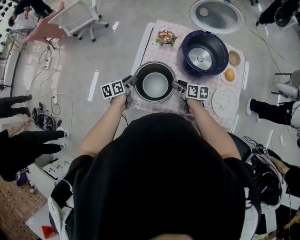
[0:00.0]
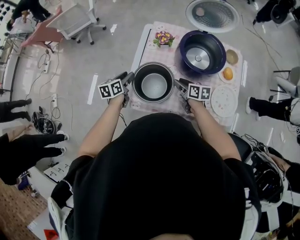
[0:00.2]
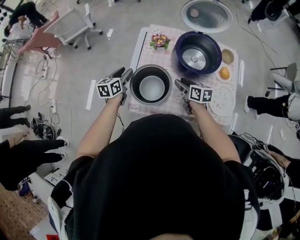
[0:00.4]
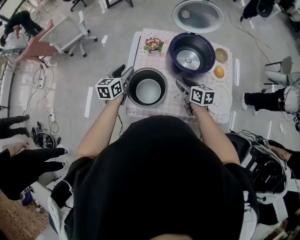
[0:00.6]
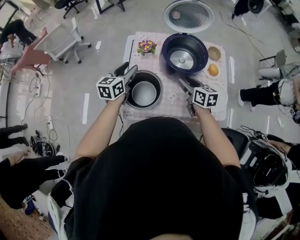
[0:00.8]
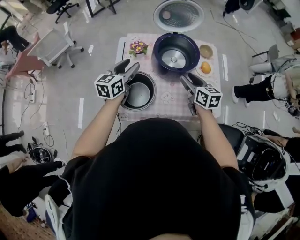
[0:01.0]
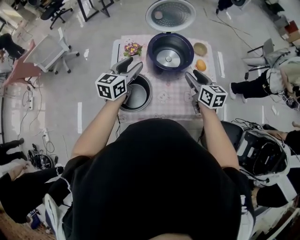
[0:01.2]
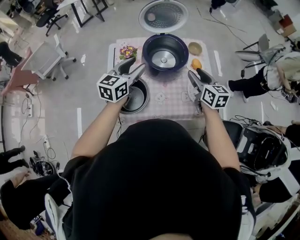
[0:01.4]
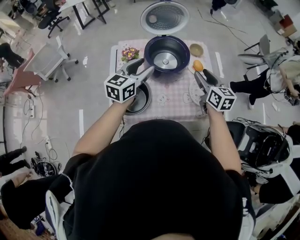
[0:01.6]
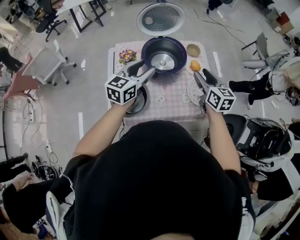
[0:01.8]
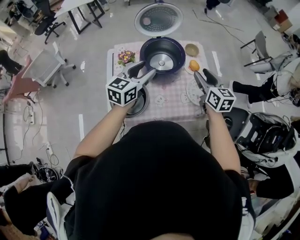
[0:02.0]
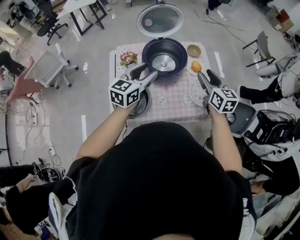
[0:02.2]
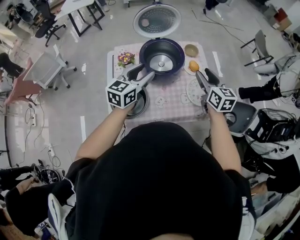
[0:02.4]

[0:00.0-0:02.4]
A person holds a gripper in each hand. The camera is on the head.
0:00.0 to 0:01.2: The grippers both shift upward by some 20 cm. The left gripper changes its angle by some 50 degrees, while the right gripper swivels some 40 degrees.
0:01.2 to 0:02.4: The right gripper heads to the right and upward, covering approximately 10 cm, while the left gripper shifts approximately 10 cm to the right.

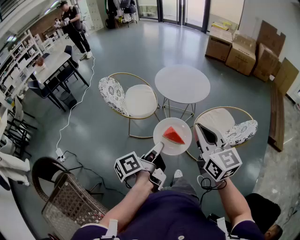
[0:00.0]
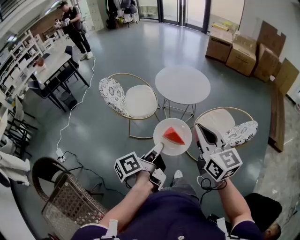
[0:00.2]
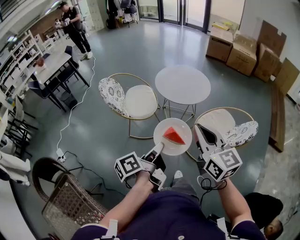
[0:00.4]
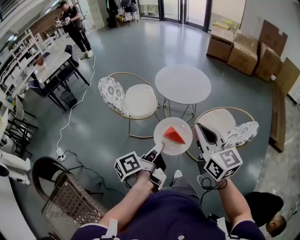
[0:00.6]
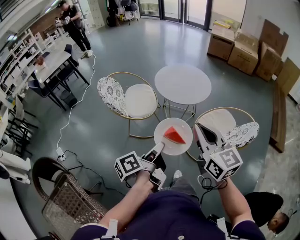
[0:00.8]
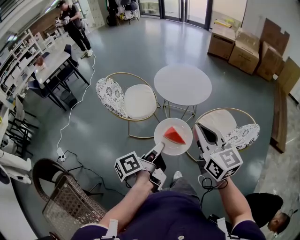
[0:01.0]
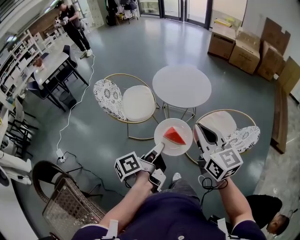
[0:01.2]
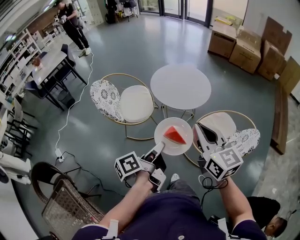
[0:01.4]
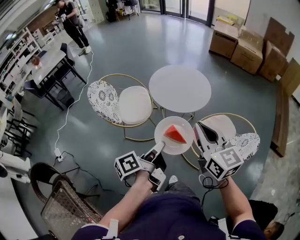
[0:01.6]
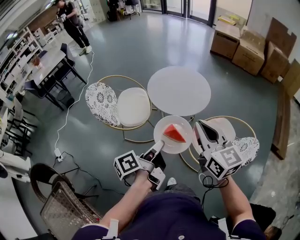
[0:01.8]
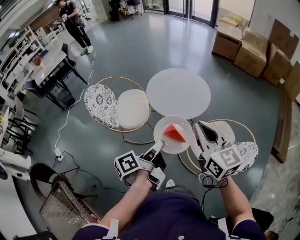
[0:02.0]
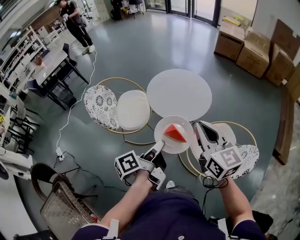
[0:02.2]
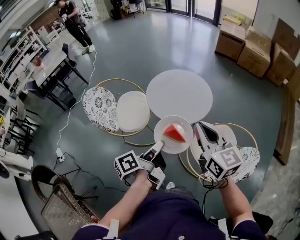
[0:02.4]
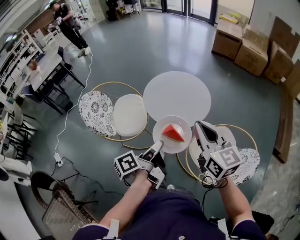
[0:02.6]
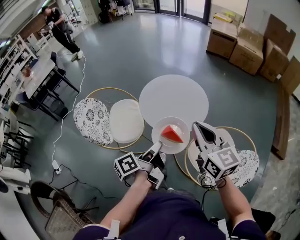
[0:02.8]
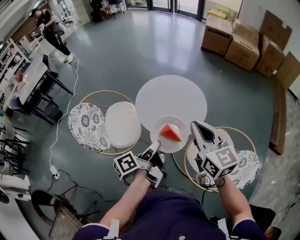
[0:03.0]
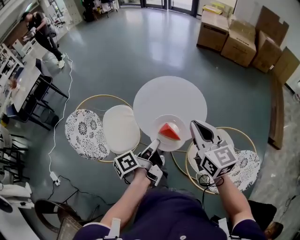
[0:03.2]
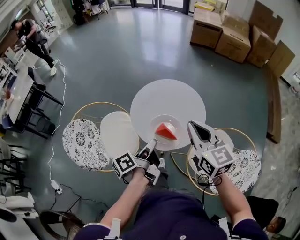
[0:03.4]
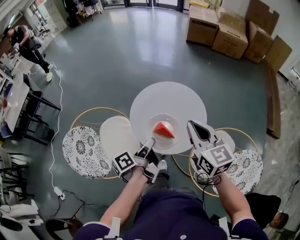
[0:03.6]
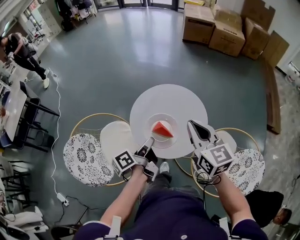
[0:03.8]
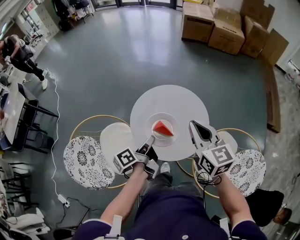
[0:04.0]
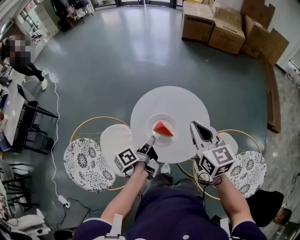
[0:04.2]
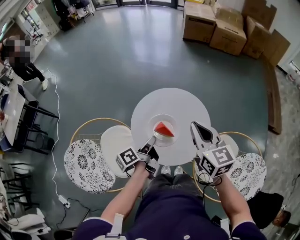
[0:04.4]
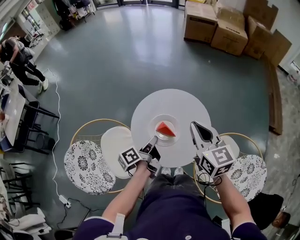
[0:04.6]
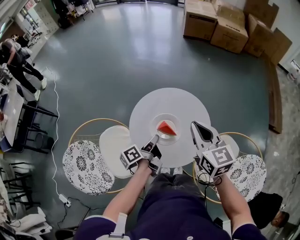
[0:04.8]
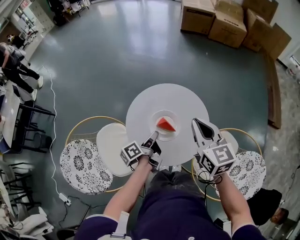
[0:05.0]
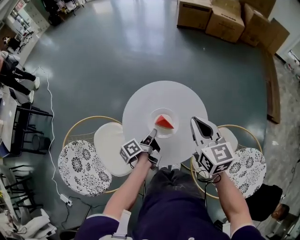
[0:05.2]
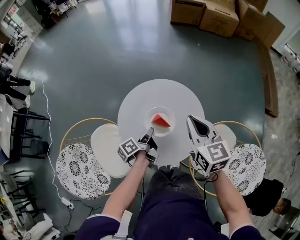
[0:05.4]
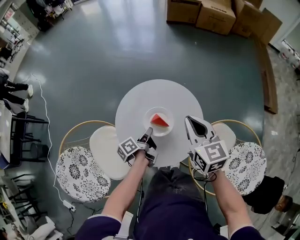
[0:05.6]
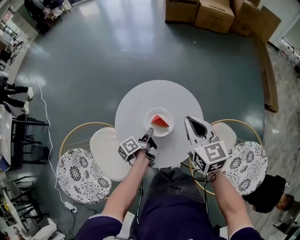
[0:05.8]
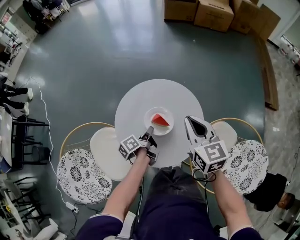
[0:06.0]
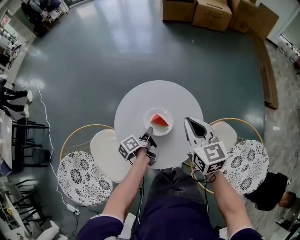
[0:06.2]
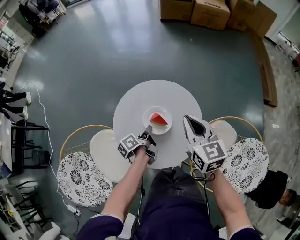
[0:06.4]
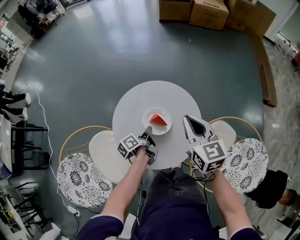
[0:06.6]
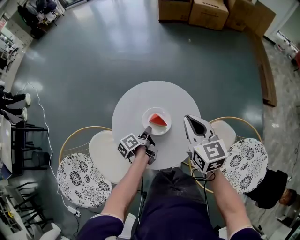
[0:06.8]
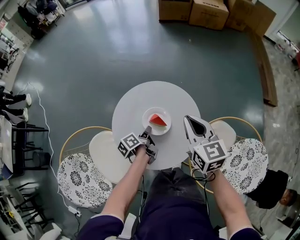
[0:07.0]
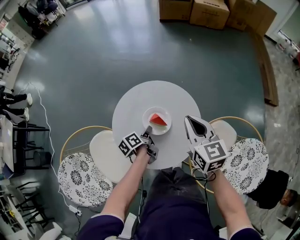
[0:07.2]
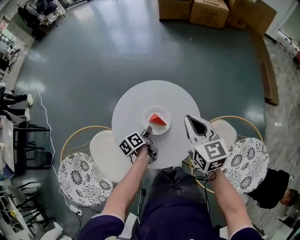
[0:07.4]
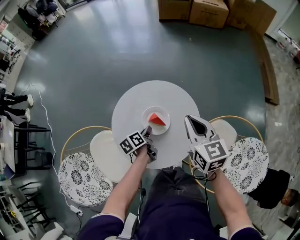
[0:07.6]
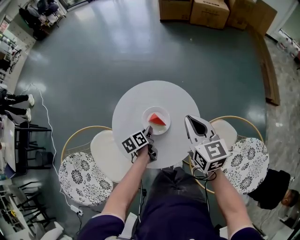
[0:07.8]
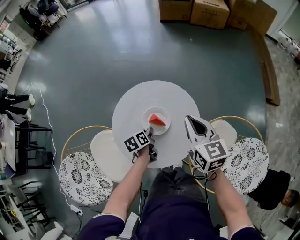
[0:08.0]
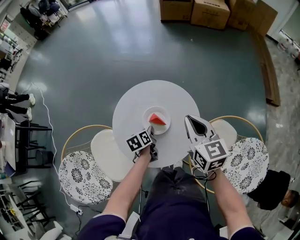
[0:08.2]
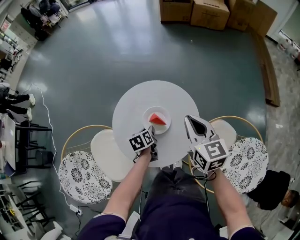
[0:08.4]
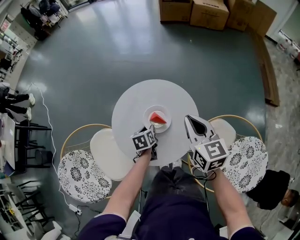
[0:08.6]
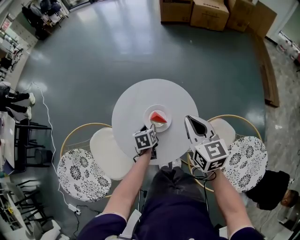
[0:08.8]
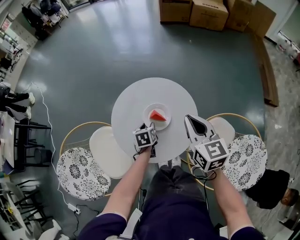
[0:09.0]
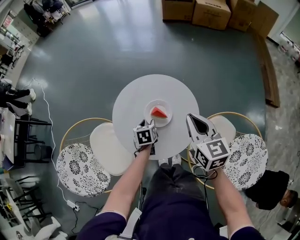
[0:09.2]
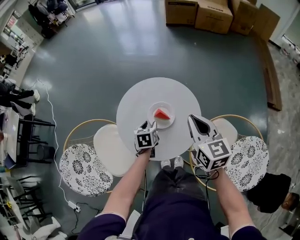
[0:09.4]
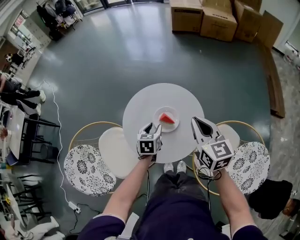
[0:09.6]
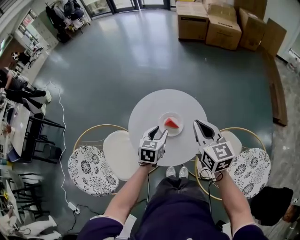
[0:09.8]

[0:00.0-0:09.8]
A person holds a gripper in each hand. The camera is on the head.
0:00.0 to 0:01.4: The left gripper heads forward and to the right, covering roughly 10 cm. The right gripper heads forward, covering about 10 cm.
0:01.4 to 0:02.8: The grippers both shift forward by approximately 20 cm.
0:02.8 to 0:04.2: Both grippers move forward, roughly 25 cm.
0:04.2 to 0:05.6: The left gripper heads downward and forward, covering about 15 cm. Meanwhile the right gripper goes roughly 10 cm downward and forward.
0:05.6 to 0:07.0: The grippers make only small movements.
0:07.0 to 0:08.4: The left gripper rotates roughly 40 degrees, and opens up.
0:08.4 to 0:09.8: The left gripper shifts roughly 15 cm upward, and changes its angle by some 40 degrees; the right gripper changes place by about 5 cm.

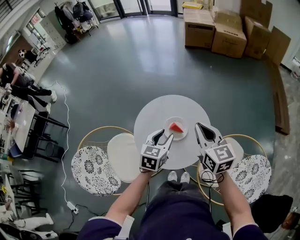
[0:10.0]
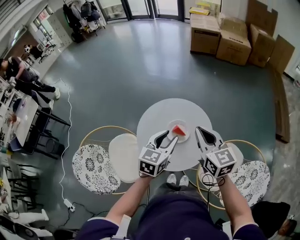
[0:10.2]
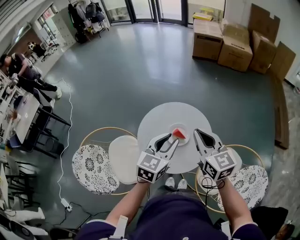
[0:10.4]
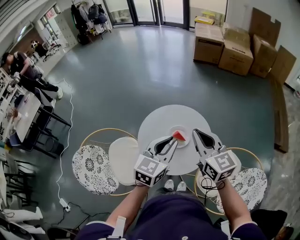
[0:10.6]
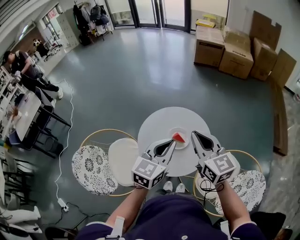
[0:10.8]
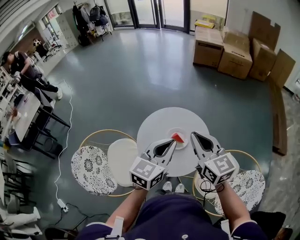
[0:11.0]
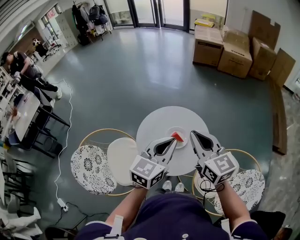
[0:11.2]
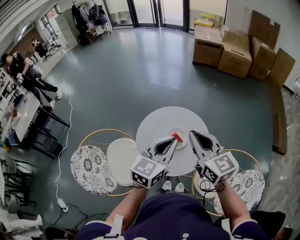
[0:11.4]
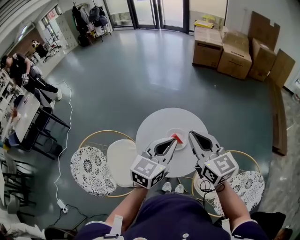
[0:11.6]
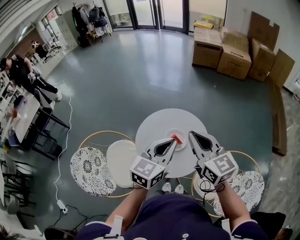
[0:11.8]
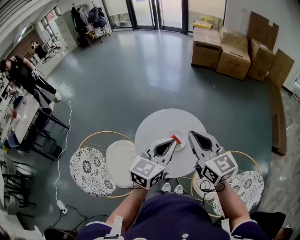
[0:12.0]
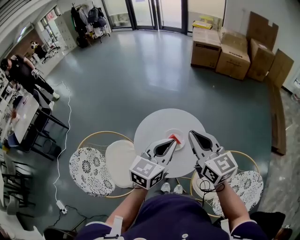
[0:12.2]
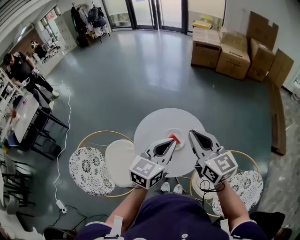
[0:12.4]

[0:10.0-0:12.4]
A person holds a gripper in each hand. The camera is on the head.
0:10.0 to 0:11.2: The left gripper heads upward, covering roughly 15 cm, and closes, while the right gripper shifts about 10 cm upward.
0:11.2 to 0:12.4: There are only small adjustments of the grippers.

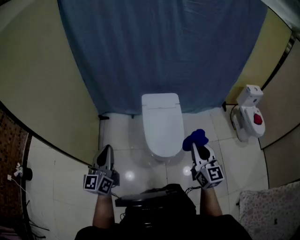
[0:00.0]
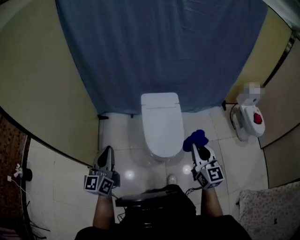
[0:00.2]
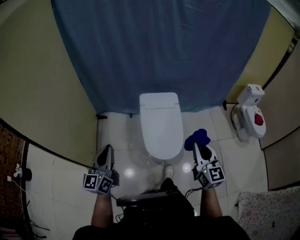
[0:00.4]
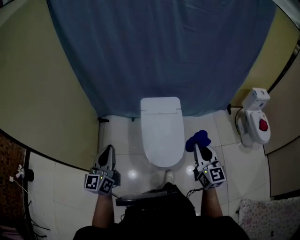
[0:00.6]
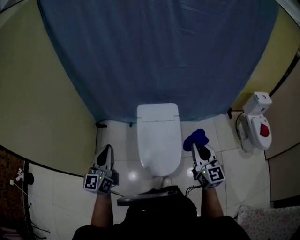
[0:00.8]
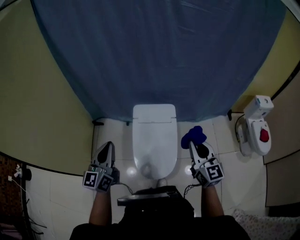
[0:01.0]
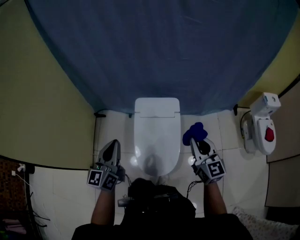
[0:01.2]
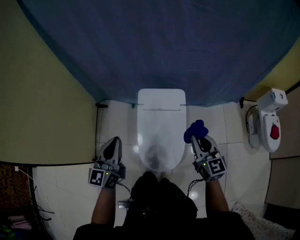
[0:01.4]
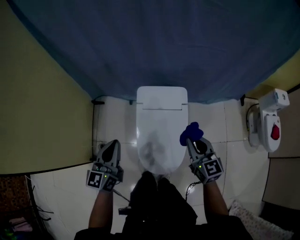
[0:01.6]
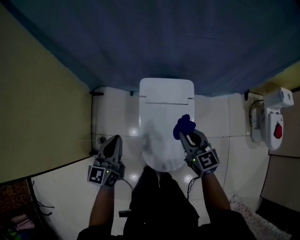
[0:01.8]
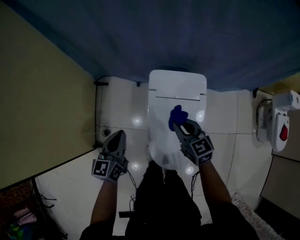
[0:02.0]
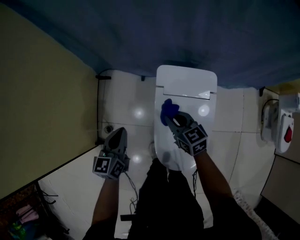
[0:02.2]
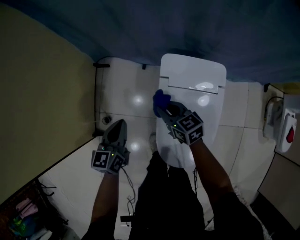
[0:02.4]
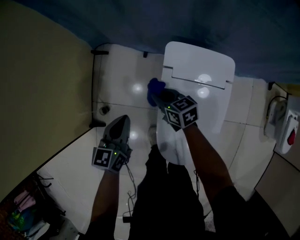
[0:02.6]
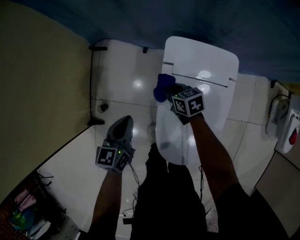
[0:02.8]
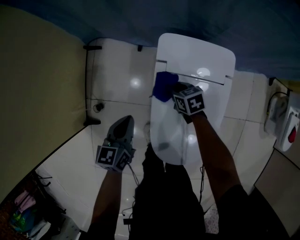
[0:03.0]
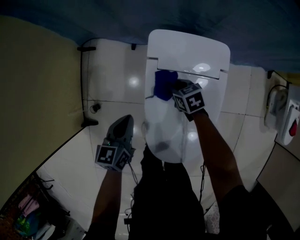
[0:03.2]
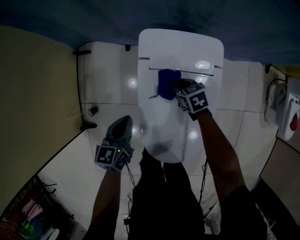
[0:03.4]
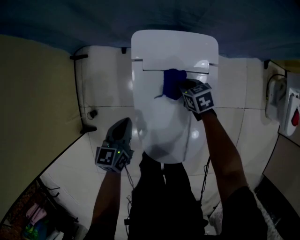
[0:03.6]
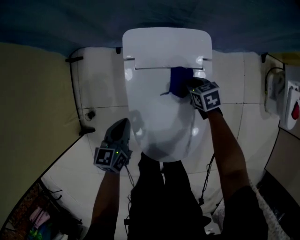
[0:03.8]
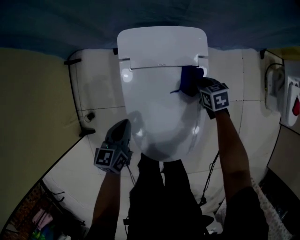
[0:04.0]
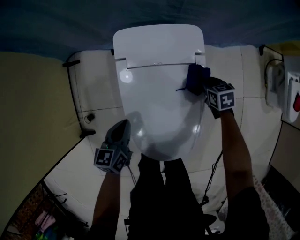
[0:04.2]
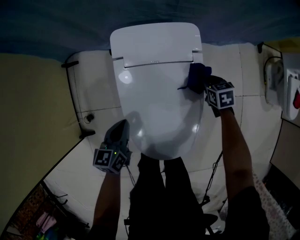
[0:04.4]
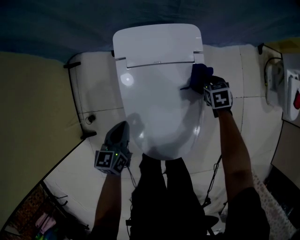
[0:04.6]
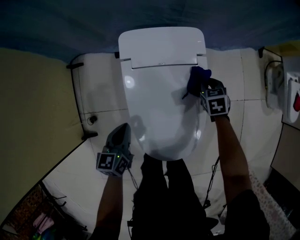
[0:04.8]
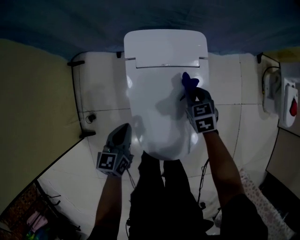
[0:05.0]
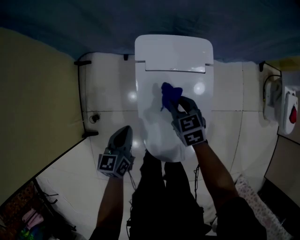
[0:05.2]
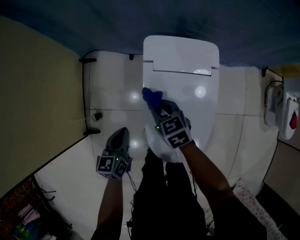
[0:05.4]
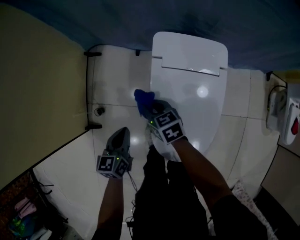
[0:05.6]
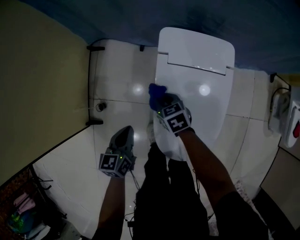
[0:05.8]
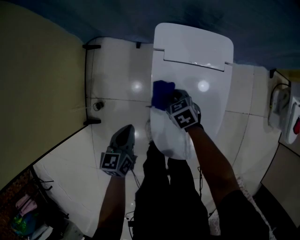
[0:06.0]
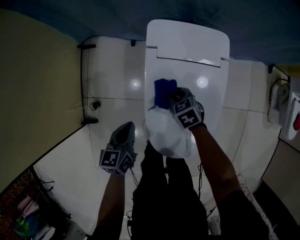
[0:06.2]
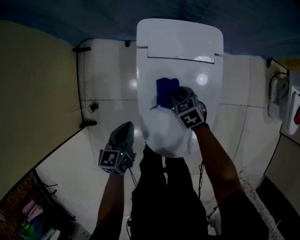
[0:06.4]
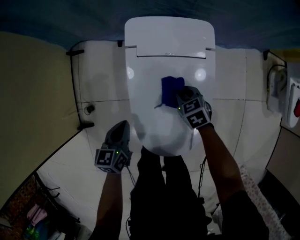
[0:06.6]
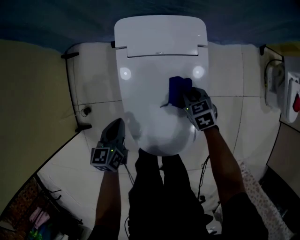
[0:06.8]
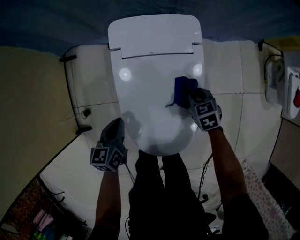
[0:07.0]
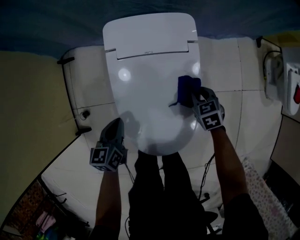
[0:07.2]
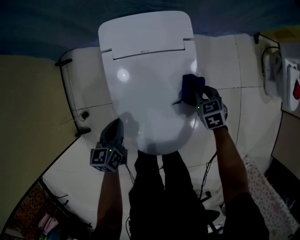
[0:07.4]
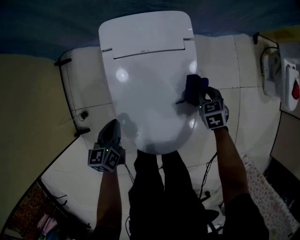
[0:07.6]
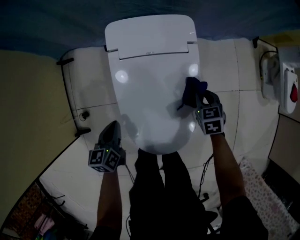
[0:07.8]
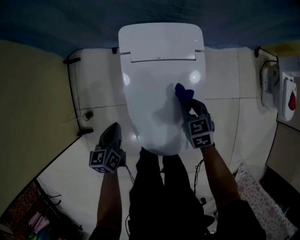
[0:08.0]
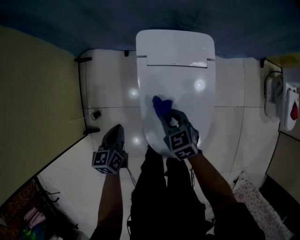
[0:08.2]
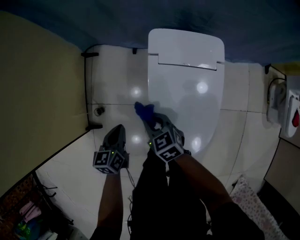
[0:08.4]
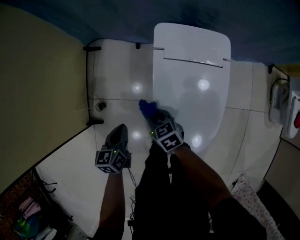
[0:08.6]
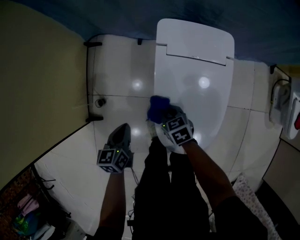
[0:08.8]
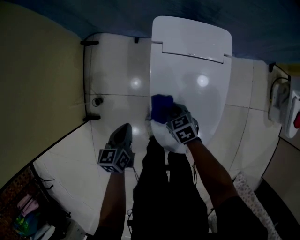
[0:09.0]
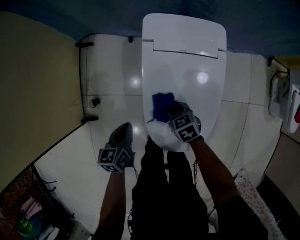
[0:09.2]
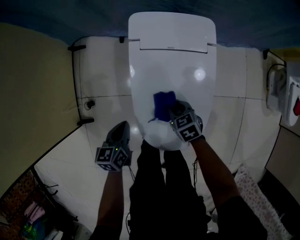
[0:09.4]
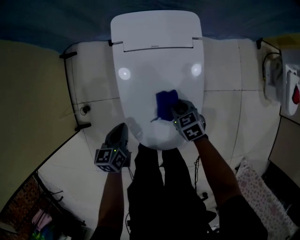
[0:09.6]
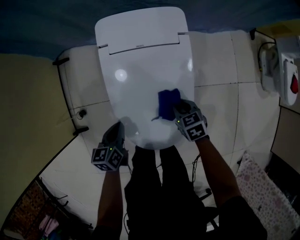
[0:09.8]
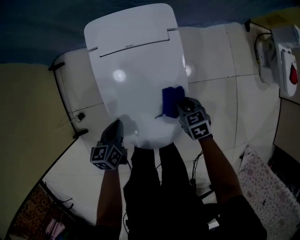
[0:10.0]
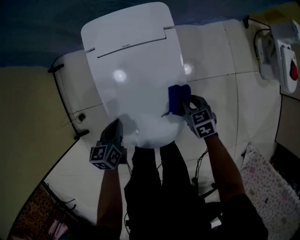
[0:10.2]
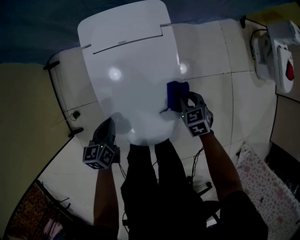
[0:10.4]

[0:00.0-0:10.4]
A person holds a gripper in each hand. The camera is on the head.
0:00.0 to 0:01.4: The right gripper heads forward, covering about 30 cm, while the left gripper goes about 30 cm forward and to the right.
0:01.4 to 0:03.0: The two grippers go approximately 50 cm downward and forward. The right gripper angles its fingers downward, by about 40 degrees; the left gripper turns by roughly 30 degrees.
0:03.0 to 0:04.4: The left gripper shifts by about 10 cm, while the right gripper changes place by about 30 cm, and changes its angle by roughly 20 degrees.
0:04.4 to 0:06.0: The right gripper moves some 10 cm upward and comes back, and swivels roughly 20 degrees. The left gripper moves about 10 cm.
0:06.0 to 0:07.4: The left gripper moves to the right, roughly 10 cm. Meanwhile the right gripper moves to the right, approximately 30 cm, and turns by roughly 20 degrees.
0:07.4 to 0:09.0: The right gripper travels upward and back again, about 10 cm each way, and swivels approximately 20 degrees. The left gripper ends up about 15 cm from where it was.
0:09.0 to 0:10.4: The left gripper changes place by roughly 15 cm; the right gripper ends up roughly 30 cm from where it was, and swivels roughly 20 degrees.
